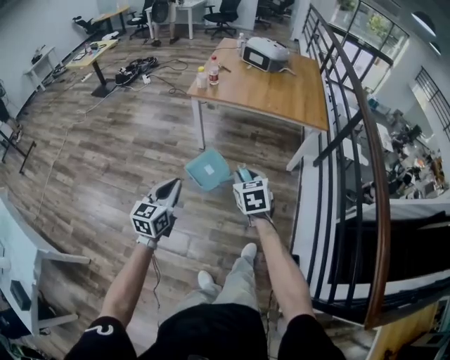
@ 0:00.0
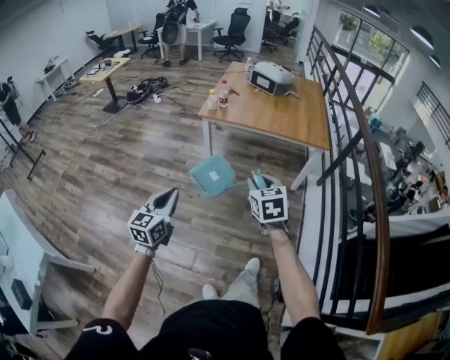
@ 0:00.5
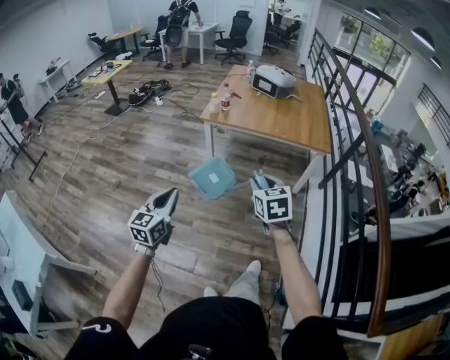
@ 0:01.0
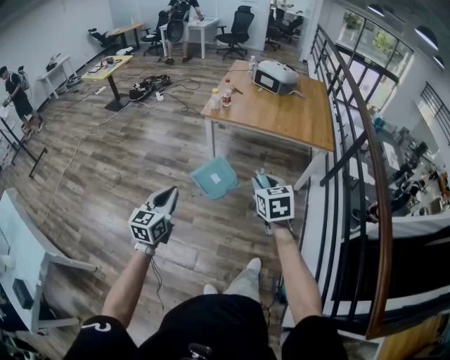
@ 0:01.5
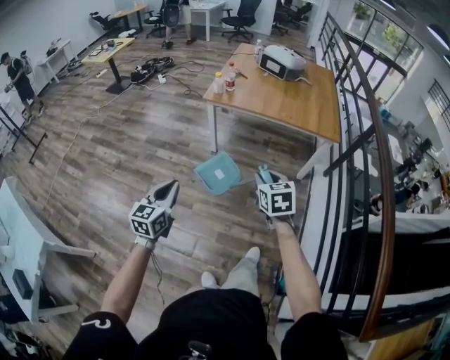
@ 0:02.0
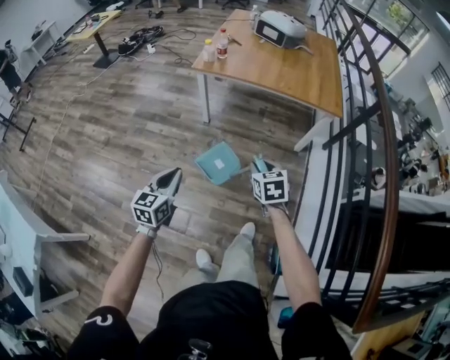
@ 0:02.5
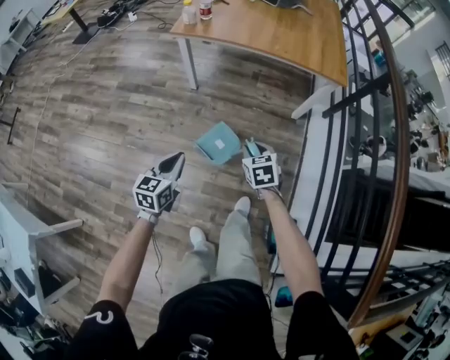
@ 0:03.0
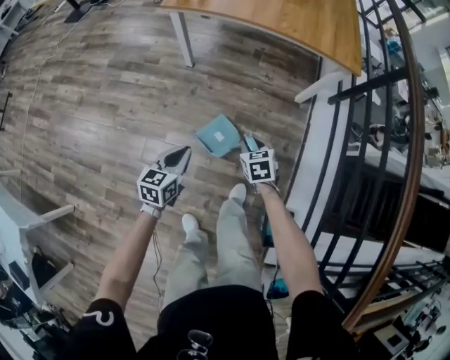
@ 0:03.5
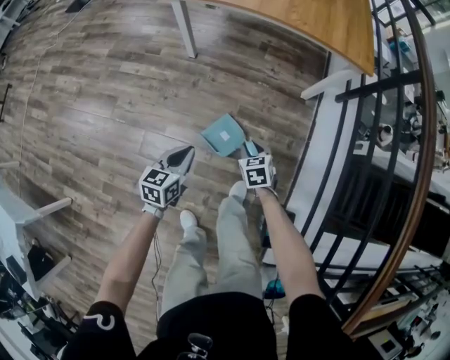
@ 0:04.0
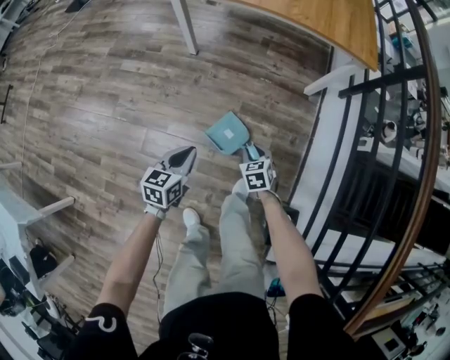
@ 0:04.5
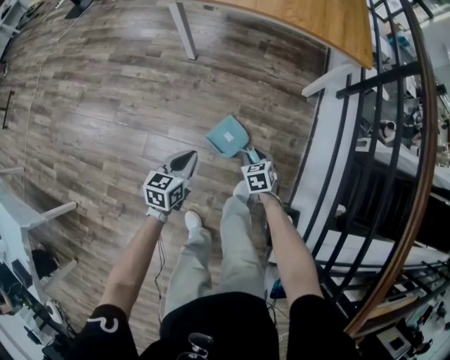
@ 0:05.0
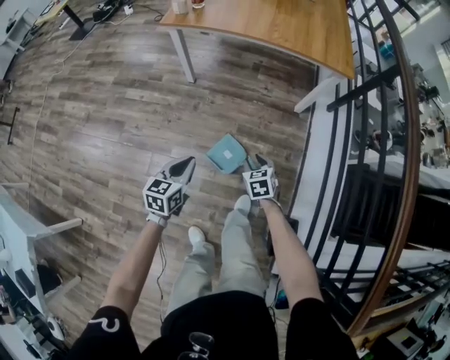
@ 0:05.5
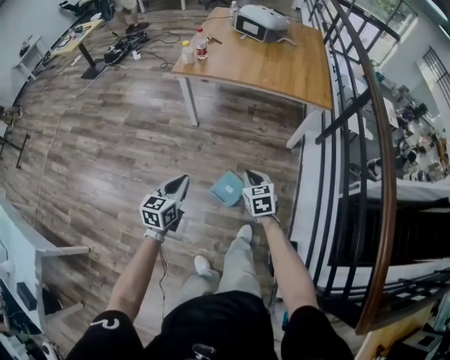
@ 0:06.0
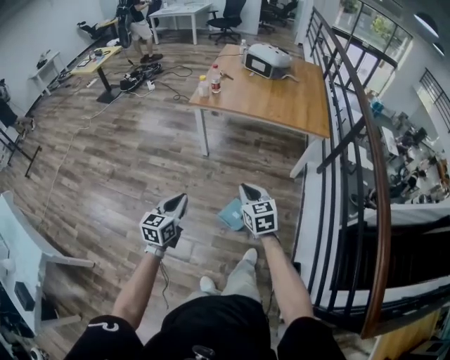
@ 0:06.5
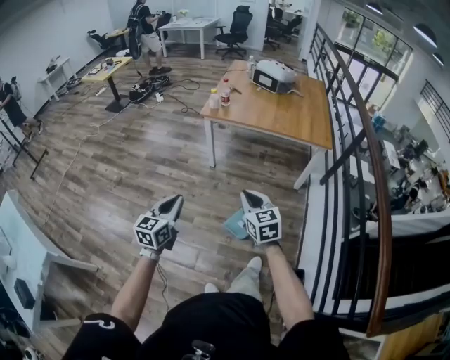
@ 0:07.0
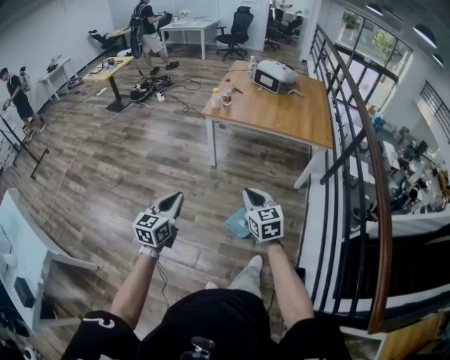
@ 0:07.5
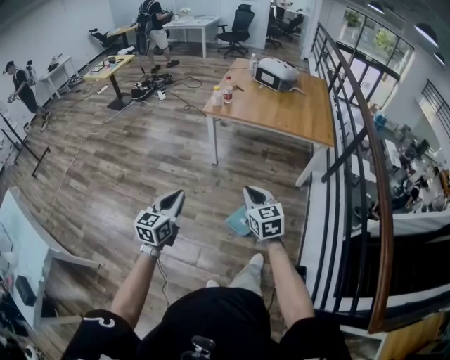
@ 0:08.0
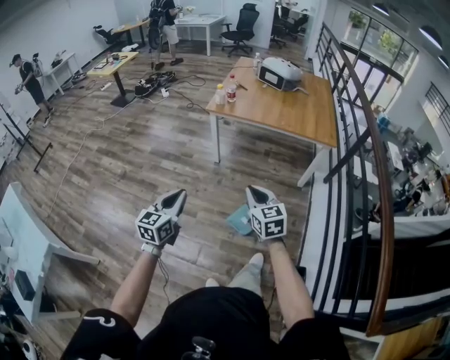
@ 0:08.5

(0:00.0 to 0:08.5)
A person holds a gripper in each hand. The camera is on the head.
0:00.0 - 0:02.0: The left gripper is displaced to the left by some 5 cm.
0:02.0 - 0:04.0: The left gripper travels downward, to the right and forward by roughly 40 cm, and rotates about 30 degrees. The right gripper goes about 40 cm downward, and changes its angle by roughly 20 degrees.
0:04.0 - 0:06.5: The left gripper is displaced upward and backward by approximately 30 cm; the right gripper is displaced upward by some 40 cm, and tips its fingers upward by roughly 30 degrees.
0:06.5 - 0:08.5: The left gripper moves upward, to the left and backward, approximately 10 cm; the right gripper travels upward and backward by some 10 cm.

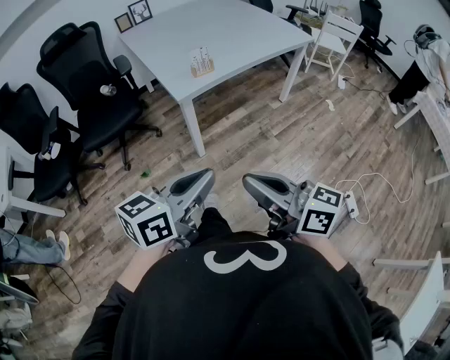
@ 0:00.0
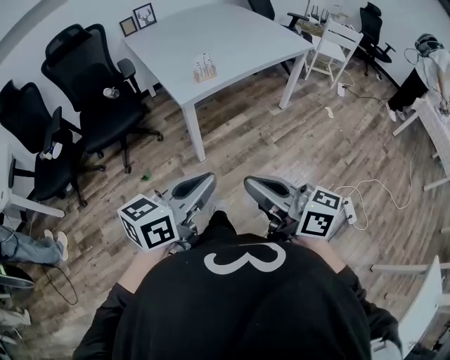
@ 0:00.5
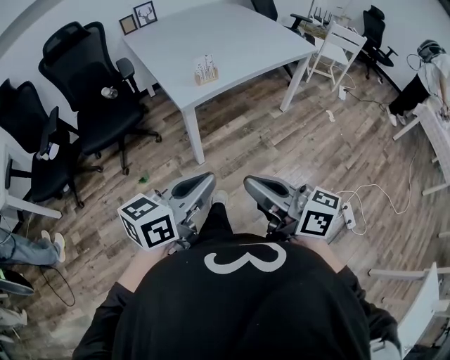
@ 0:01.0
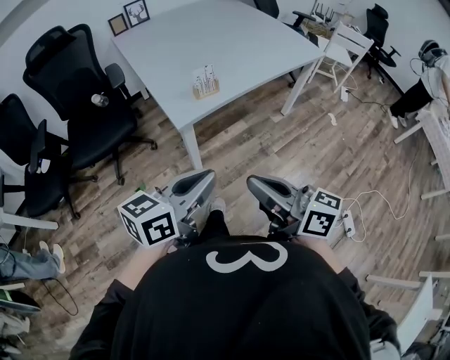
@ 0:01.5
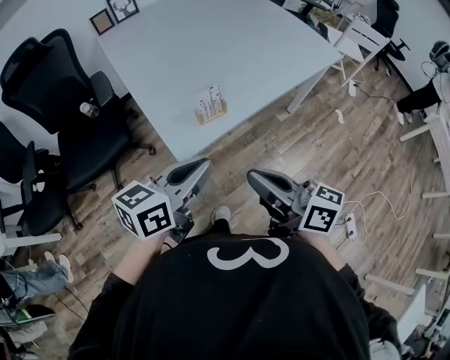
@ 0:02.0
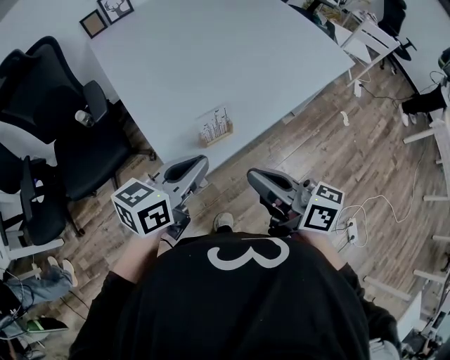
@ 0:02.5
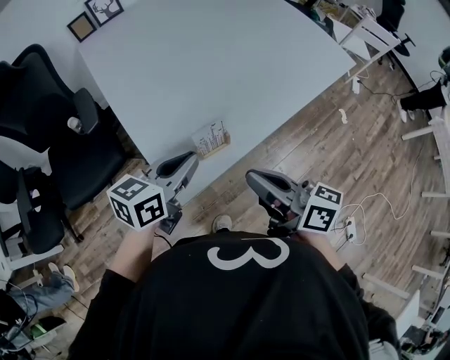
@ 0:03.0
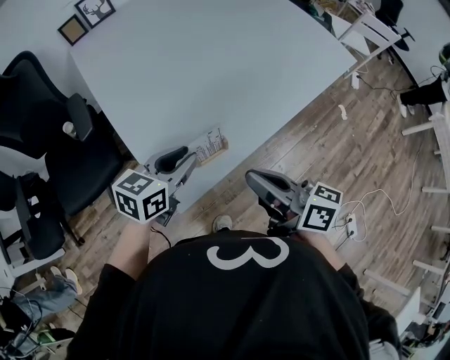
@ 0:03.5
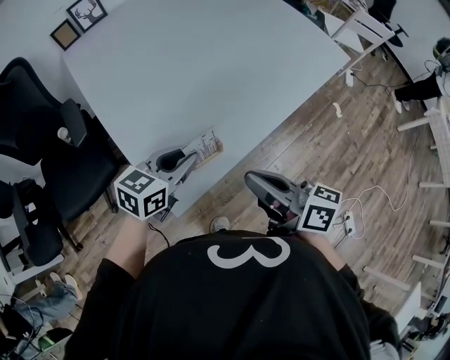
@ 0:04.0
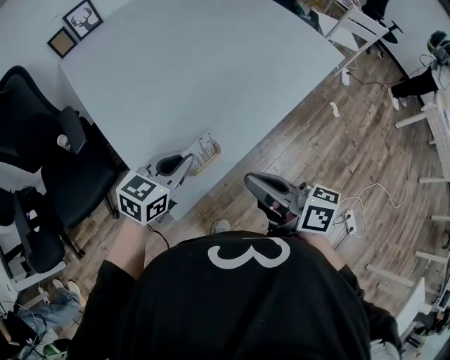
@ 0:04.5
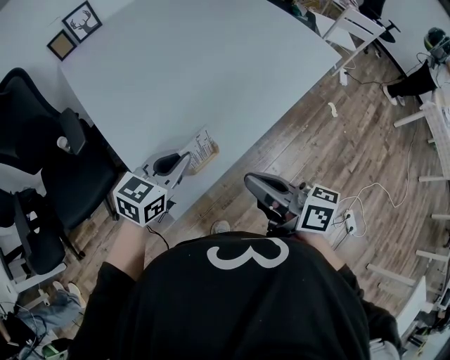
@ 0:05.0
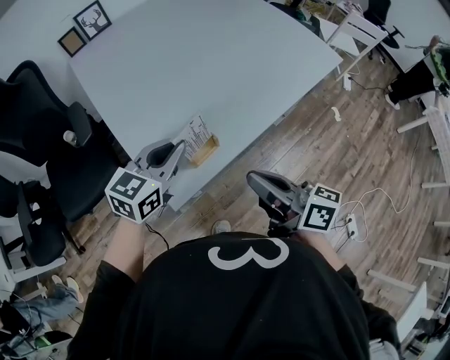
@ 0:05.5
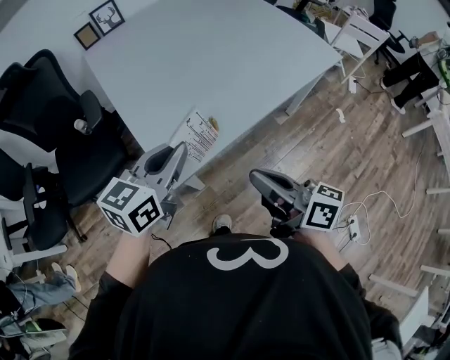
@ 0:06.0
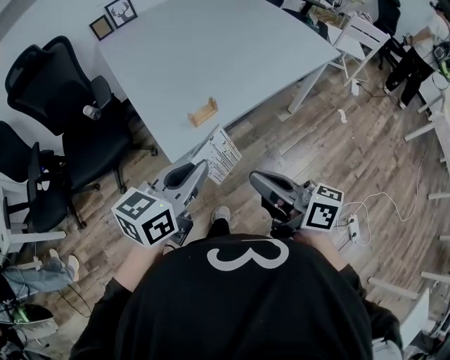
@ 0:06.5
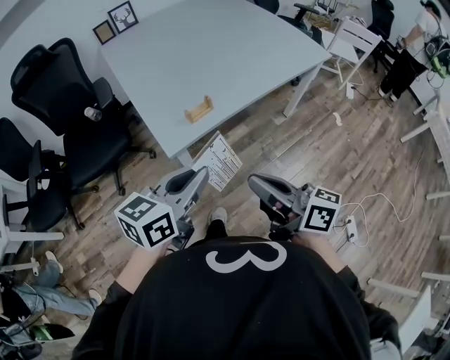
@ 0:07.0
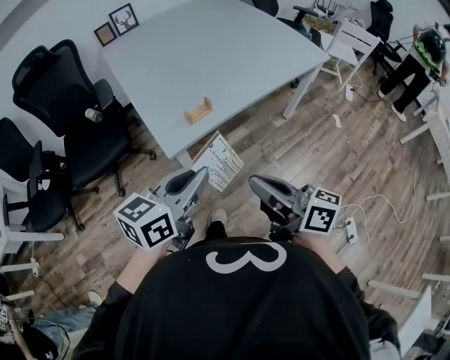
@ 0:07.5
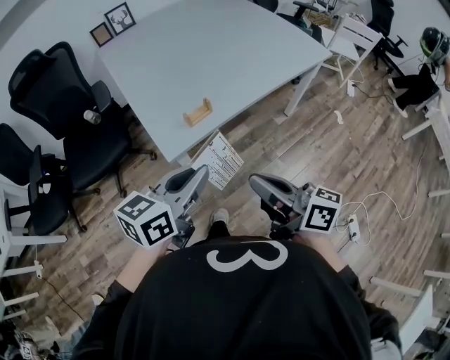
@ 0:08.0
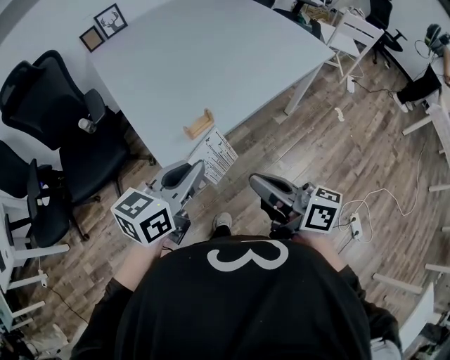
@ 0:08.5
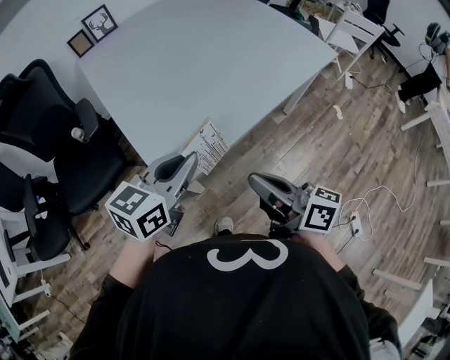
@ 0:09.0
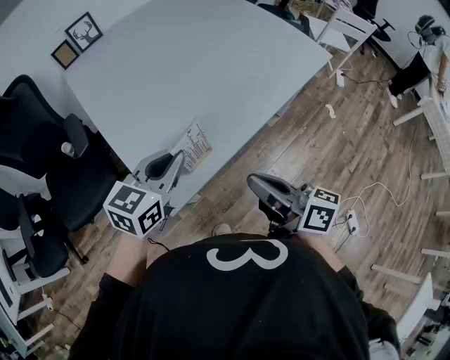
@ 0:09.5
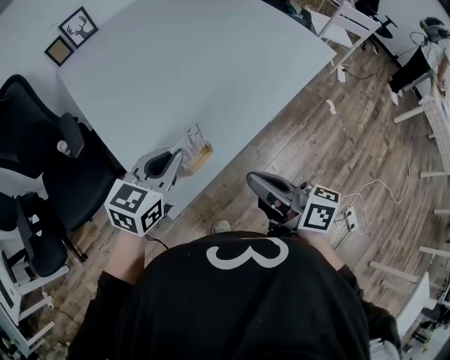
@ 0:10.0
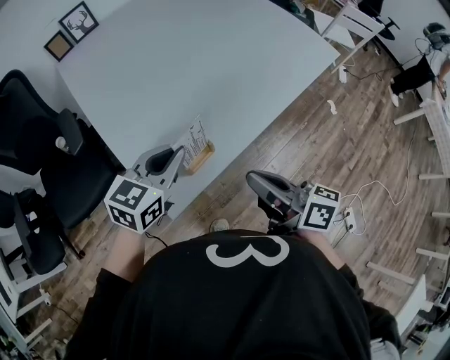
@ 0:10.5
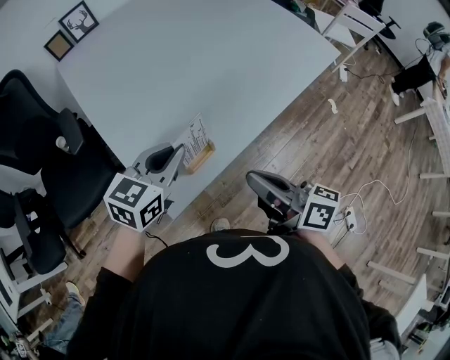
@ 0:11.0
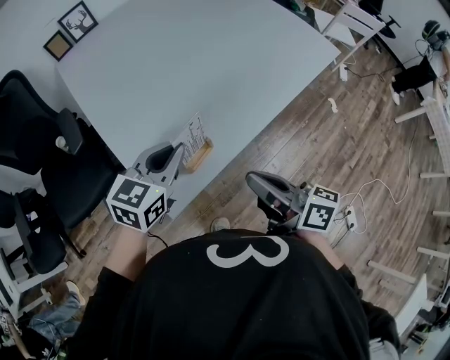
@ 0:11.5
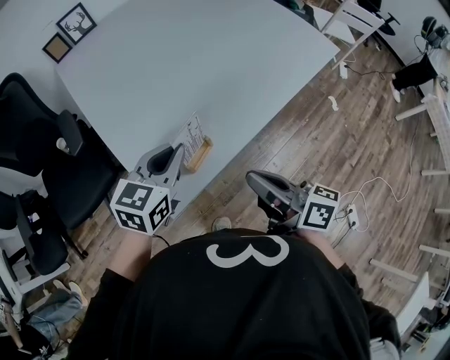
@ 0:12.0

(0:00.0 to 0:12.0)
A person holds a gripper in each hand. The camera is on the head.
0:00.0 - 0:02.0: Both grippers travel together forward, approximately 35 cm.
0:02.0 - 0:04.0: The left gripper shifts about 25 cm forward and downward. Meanwhile the right gripper goes some 15 cm forward.
0:04.0 - 0:06.0: The right gripper is displaced backward by approximately 10 cm. The left gripper moves upward and backward, roughly 15 cm.
0:06.0 - 0:08.0: Both grippers travel together backward, approximately 10 cm.
0:08.0 - 0:10.0: The grippers both shift forward by roughly 20 cm. The left gripper turns by about 20 degrees.
0:10.0 - 0:12.0: There are only small adjustments of the grippers.

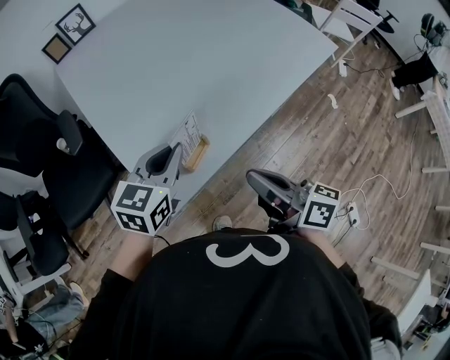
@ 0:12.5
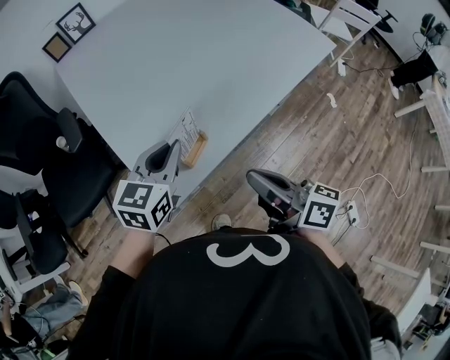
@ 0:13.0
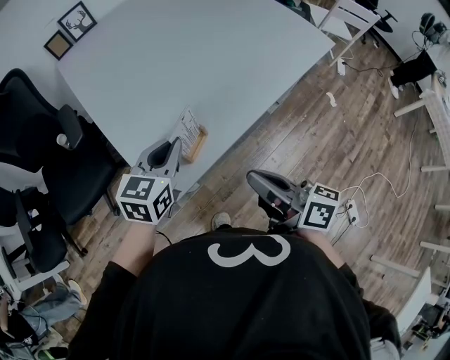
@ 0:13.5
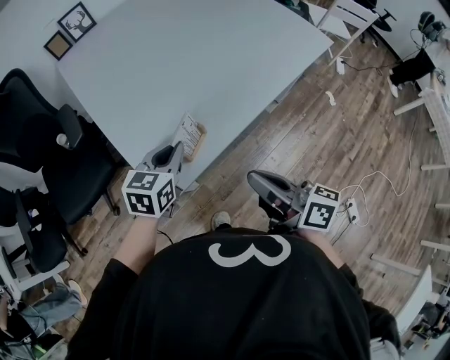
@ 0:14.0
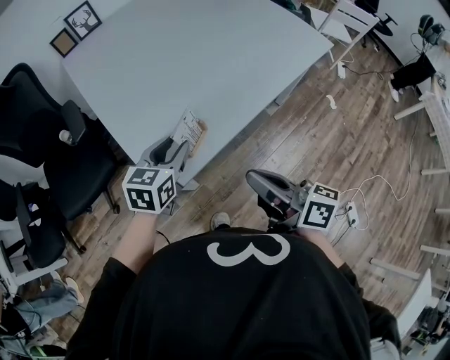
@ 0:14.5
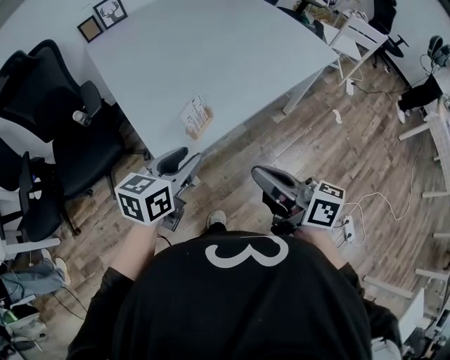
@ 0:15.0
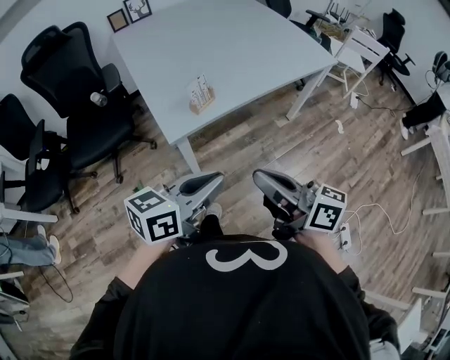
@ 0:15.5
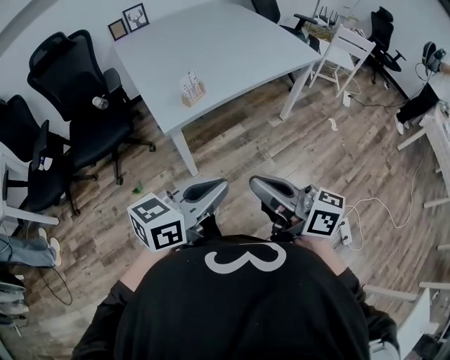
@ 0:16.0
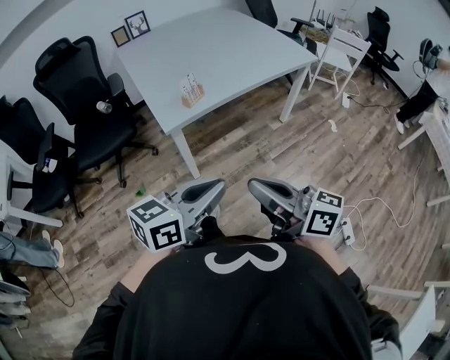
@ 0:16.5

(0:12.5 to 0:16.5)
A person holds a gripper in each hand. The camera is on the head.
0:12.5 - 0:14.5: The left gripper changes place by some 5 cm, and opens its fingers.
0:14.5 - 0:16.5: The grippers both shift backward by about 35 cm. The left gripper rotates roughly 30 degrees, and closes.

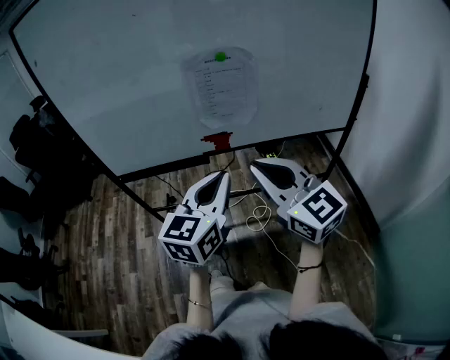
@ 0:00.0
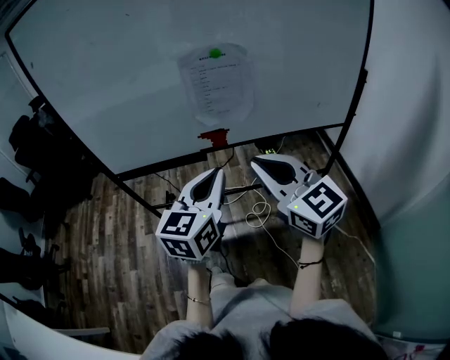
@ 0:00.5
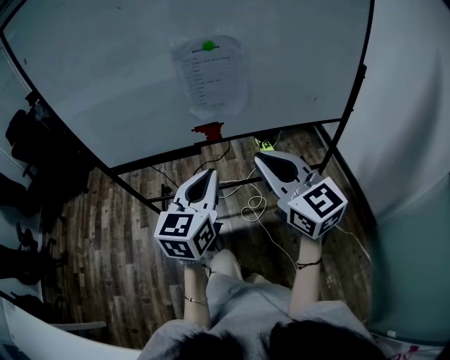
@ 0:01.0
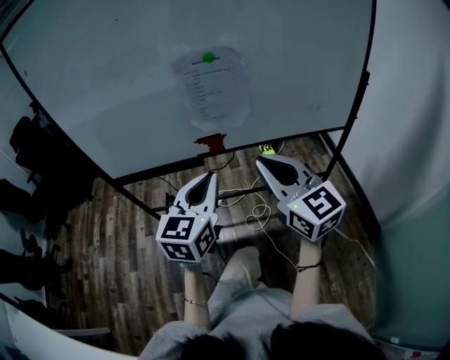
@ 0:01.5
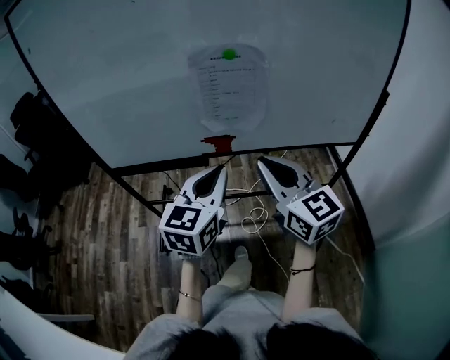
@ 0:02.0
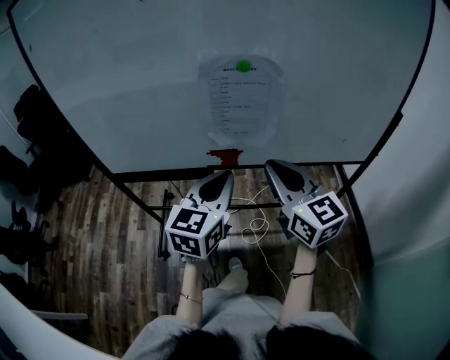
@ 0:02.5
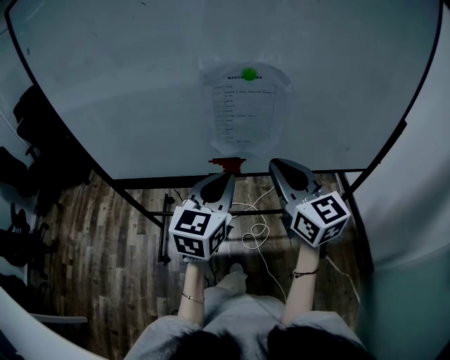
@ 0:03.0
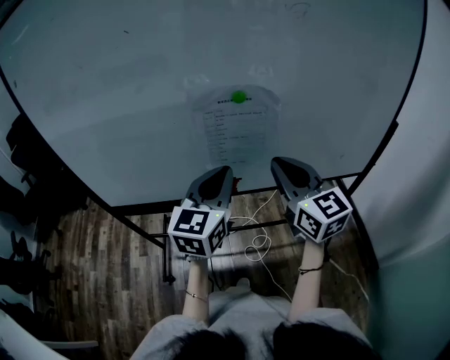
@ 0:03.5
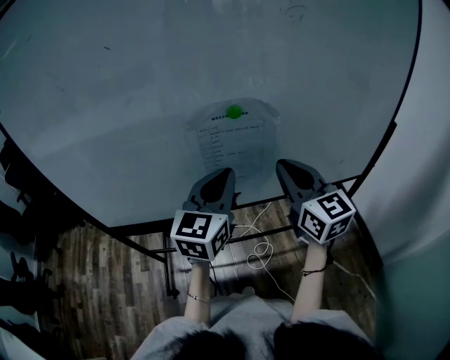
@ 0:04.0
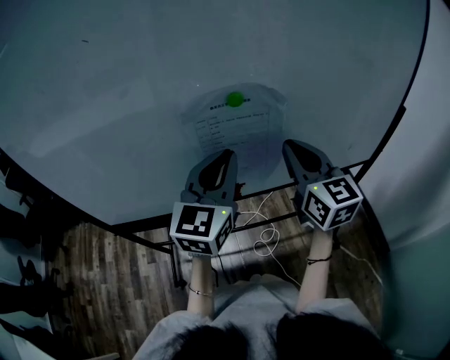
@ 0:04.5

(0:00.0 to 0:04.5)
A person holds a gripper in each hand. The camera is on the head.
0:00.0 - 0:02.0: The two grippers go roughly 10 cm forward.
0:02.0 - 0:04.5: Both grippers travel together forward, about 20 cm.
